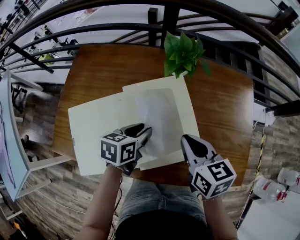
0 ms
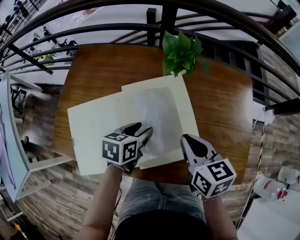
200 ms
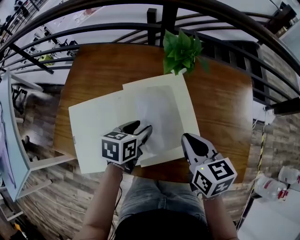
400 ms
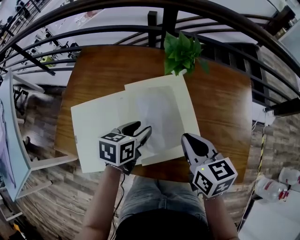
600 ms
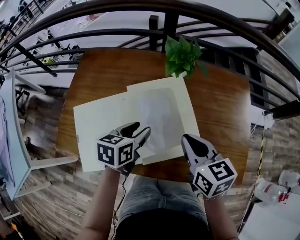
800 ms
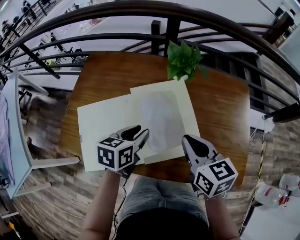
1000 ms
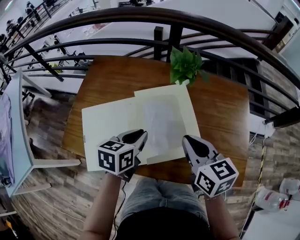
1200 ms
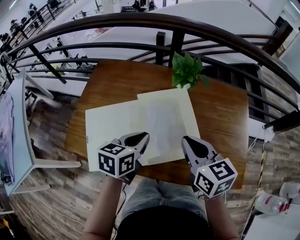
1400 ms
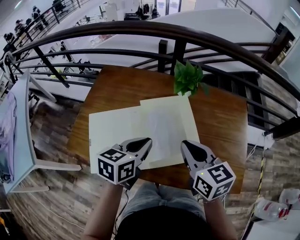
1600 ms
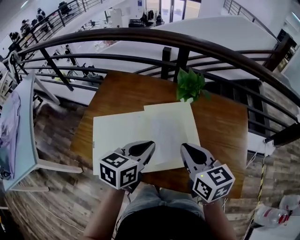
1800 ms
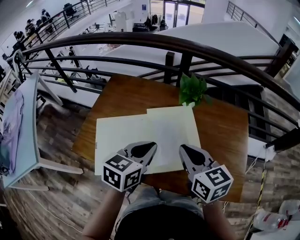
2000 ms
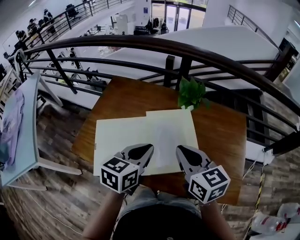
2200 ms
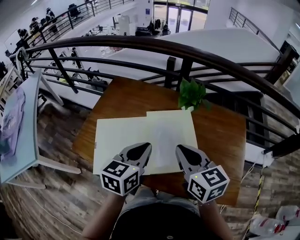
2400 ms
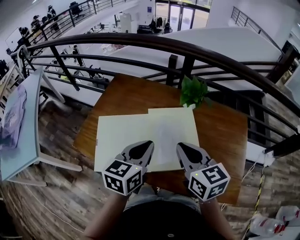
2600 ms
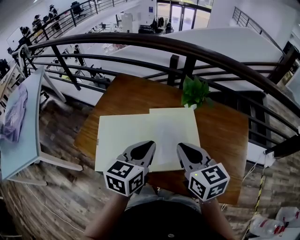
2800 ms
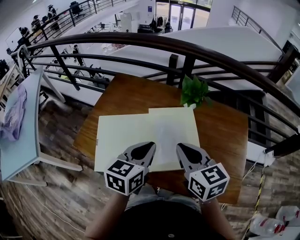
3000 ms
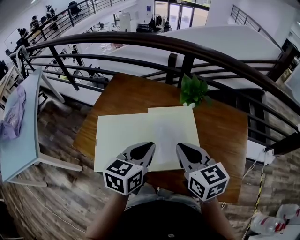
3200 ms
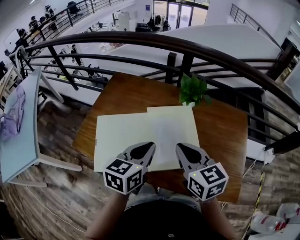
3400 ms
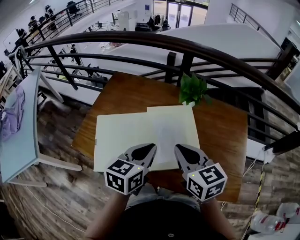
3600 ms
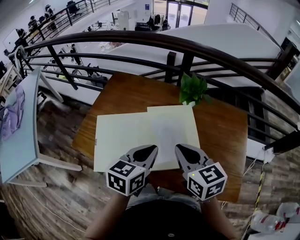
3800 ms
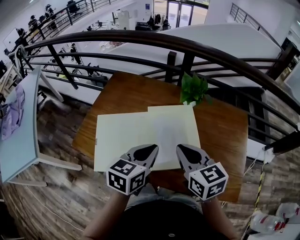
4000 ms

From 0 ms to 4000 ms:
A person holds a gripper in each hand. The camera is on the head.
From 0 ms to 1400 ms: Both grippers travel together upward, about 10 cm. The left gripper closes up.
From 1400 ms to 2600 ms: The left gripper moves upward, approximately 10 cm. The right gripper shifts by about 5 cm.
From 2600 ms to 4000 ms: There are only small adjustments of the grippers.

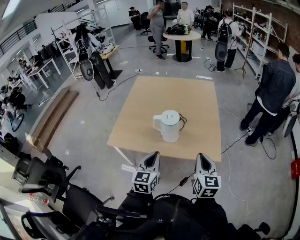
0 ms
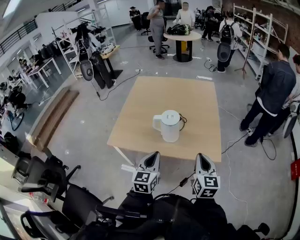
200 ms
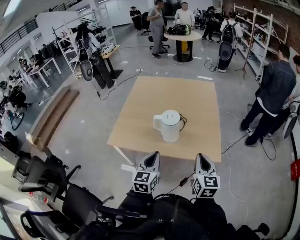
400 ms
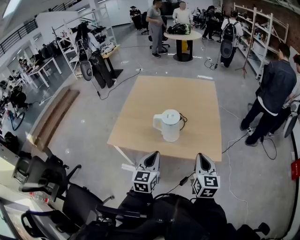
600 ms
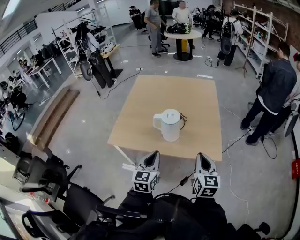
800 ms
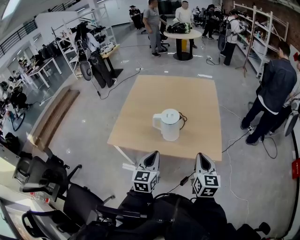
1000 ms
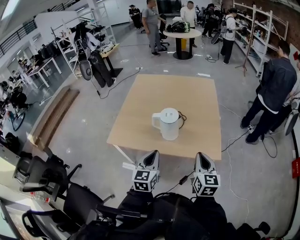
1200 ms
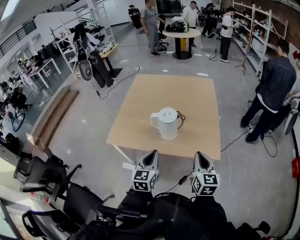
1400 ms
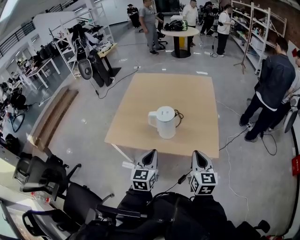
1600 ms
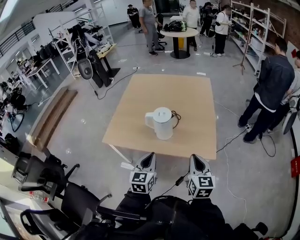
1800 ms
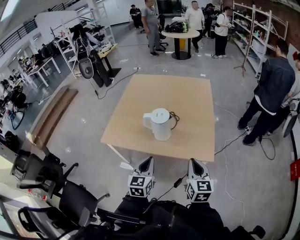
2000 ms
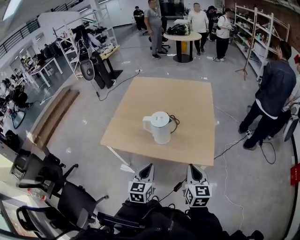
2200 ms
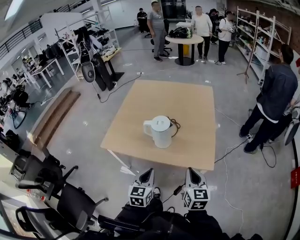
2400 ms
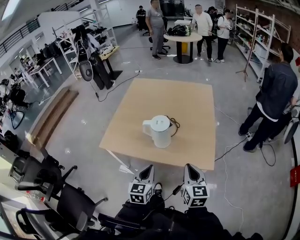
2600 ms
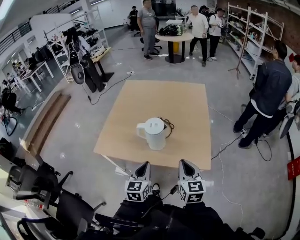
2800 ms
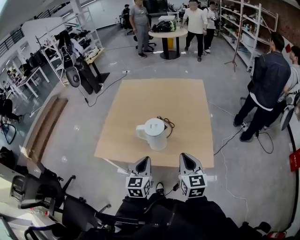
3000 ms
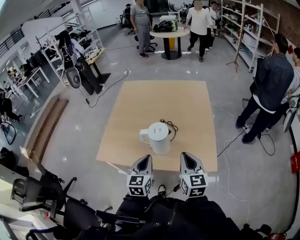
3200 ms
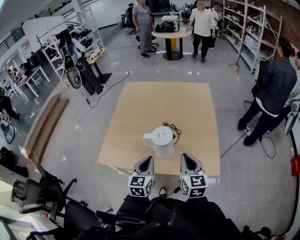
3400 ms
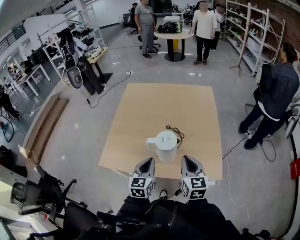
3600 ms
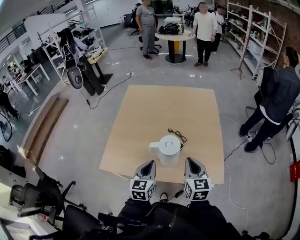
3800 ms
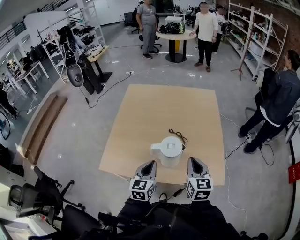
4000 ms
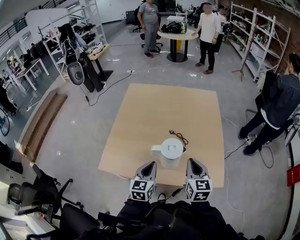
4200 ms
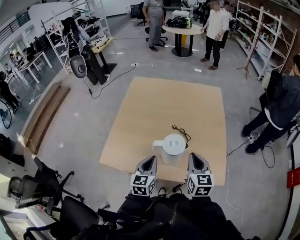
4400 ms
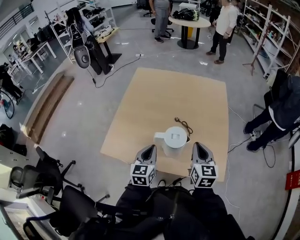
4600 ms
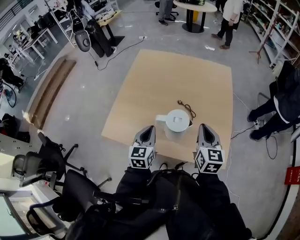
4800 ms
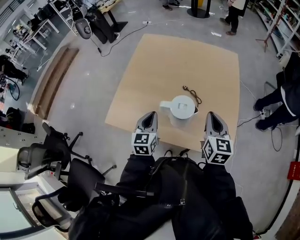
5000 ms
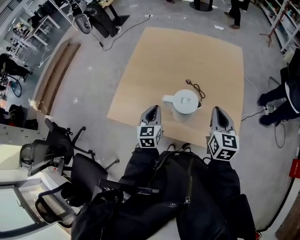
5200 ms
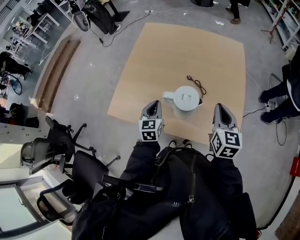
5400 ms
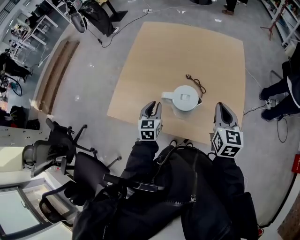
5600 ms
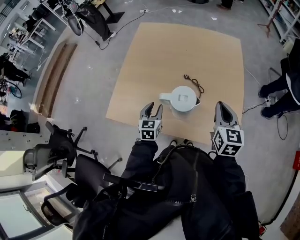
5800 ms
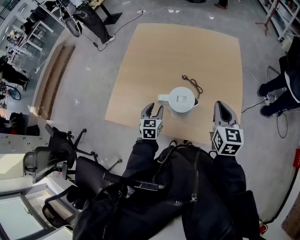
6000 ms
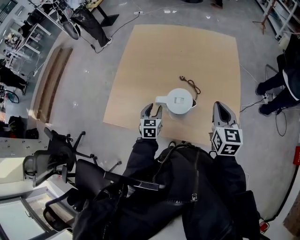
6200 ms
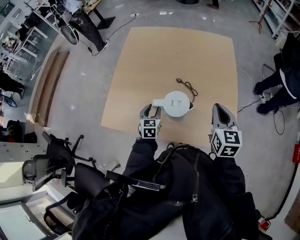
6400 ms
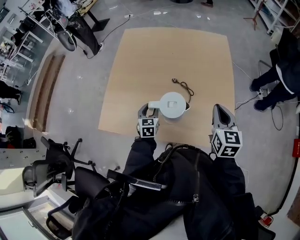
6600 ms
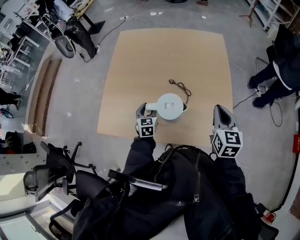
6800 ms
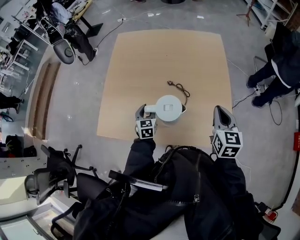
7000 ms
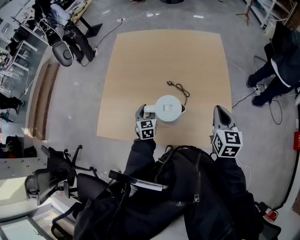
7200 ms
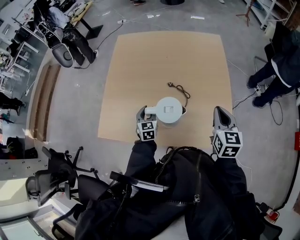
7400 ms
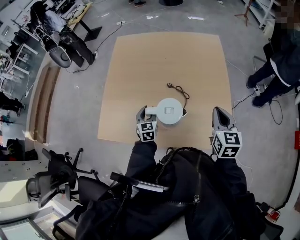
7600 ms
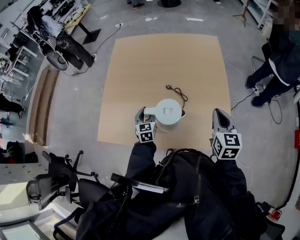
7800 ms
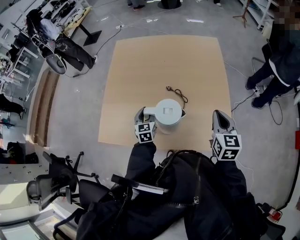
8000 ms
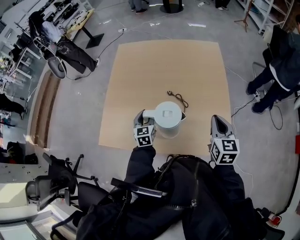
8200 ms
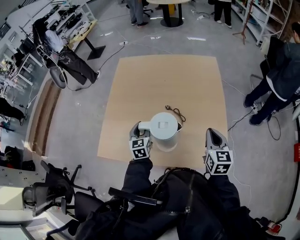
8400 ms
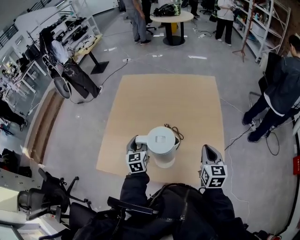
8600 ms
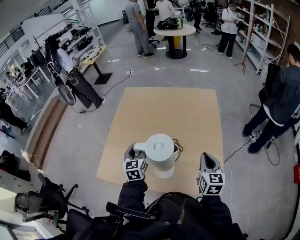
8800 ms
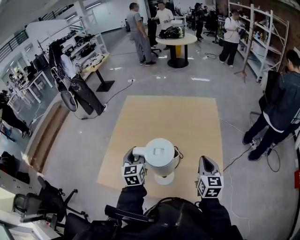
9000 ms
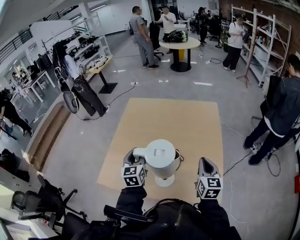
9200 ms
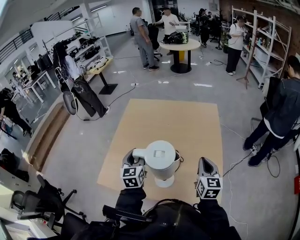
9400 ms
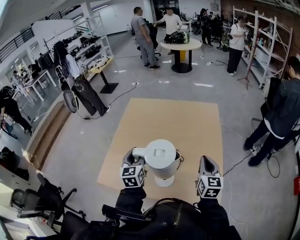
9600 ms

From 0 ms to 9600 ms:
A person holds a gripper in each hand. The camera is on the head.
From 0 ms to 1600 ms: The grippers move only a little.
From 1600 ms to 3200 ms: The grippers both shift forward by some 10 cm.
From 3200 ms to 4800 ms: The right gripper moves forward, some 15 cm, while the left gripper shifts some 15 cm forward and to the left.
From 4800 ms to 6400 ms: The right gripper moves to the right, about 5 cm; the left gripper moves downward and forward, about 20 cm, and opens up.
From 6400 ms to 8000 ms: The left gripper changes place by roughly 5 cm.
From 8000 ms to 9600 ms: The left gripper shifts about 20 cm upward.

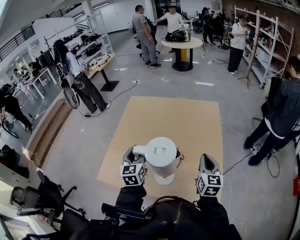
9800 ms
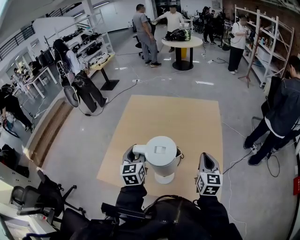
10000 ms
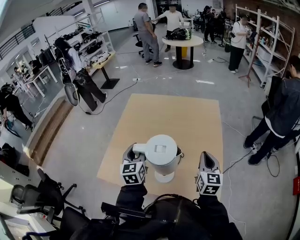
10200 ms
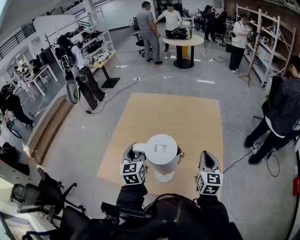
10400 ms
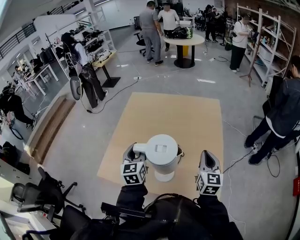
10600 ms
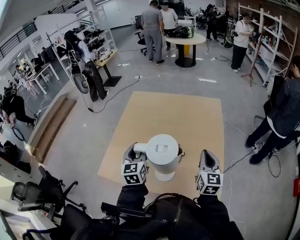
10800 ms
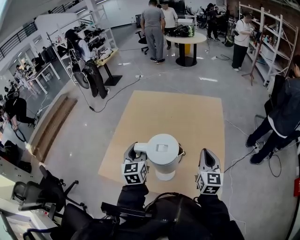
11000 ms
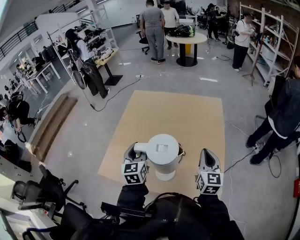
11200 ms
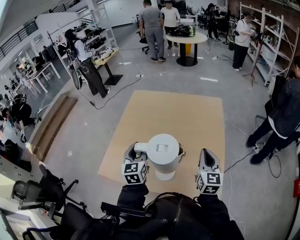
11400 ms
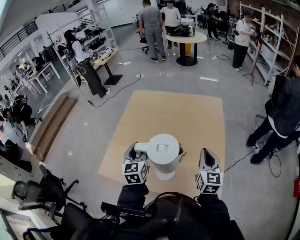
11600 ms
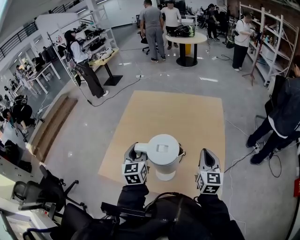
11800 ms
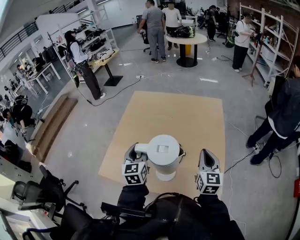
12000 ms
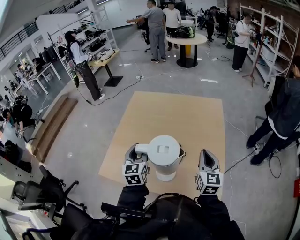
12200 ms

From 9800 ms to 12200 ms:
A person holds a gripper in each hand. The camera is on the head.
From 9800 ms to 11000 ms: The grippers make only small movements.
From 11000 ms to 12200 ms: Neither gripper changes place.

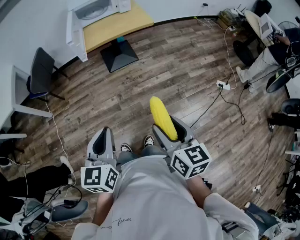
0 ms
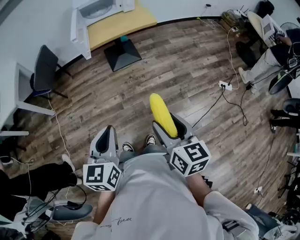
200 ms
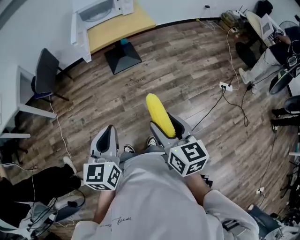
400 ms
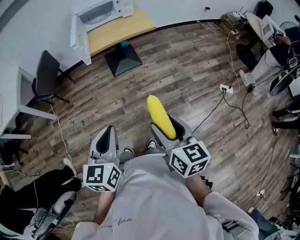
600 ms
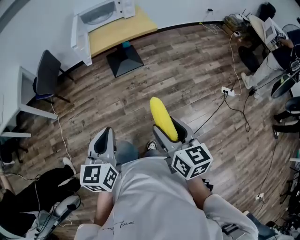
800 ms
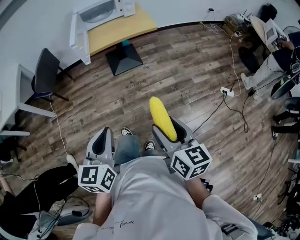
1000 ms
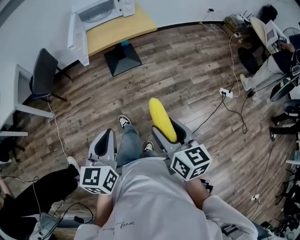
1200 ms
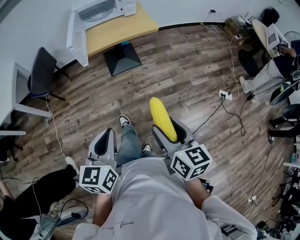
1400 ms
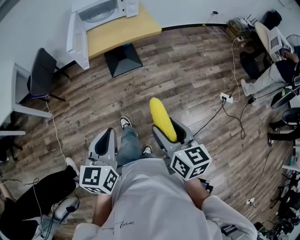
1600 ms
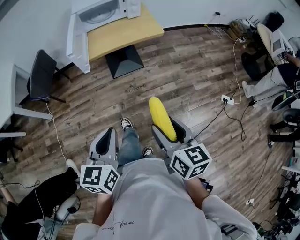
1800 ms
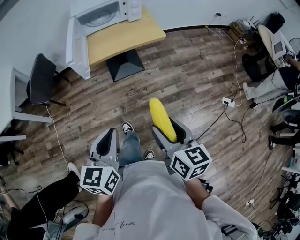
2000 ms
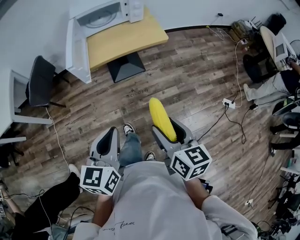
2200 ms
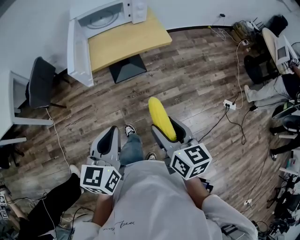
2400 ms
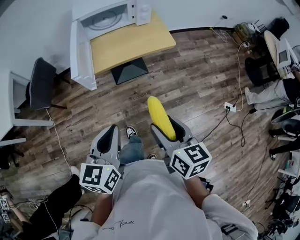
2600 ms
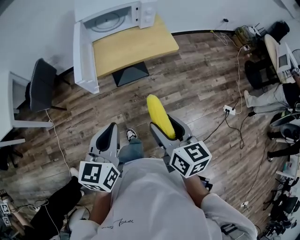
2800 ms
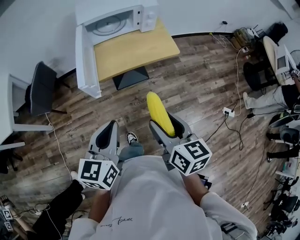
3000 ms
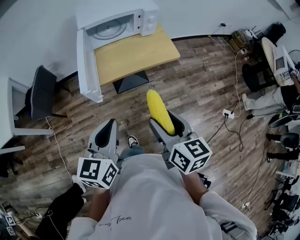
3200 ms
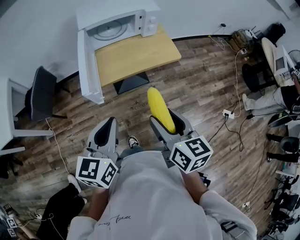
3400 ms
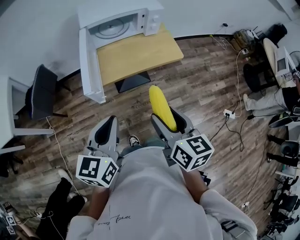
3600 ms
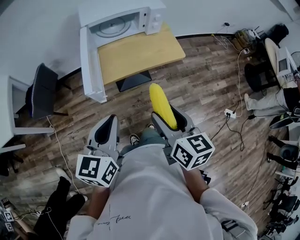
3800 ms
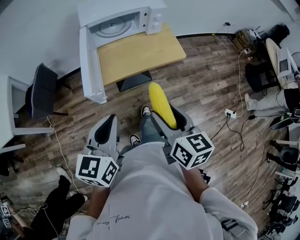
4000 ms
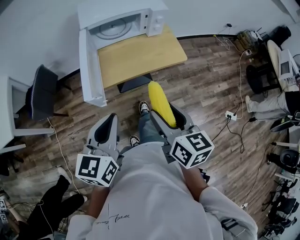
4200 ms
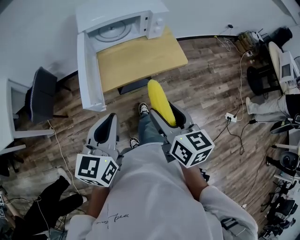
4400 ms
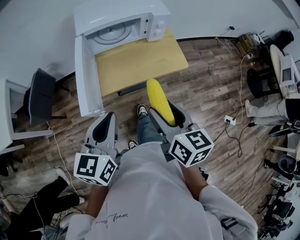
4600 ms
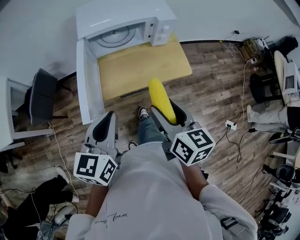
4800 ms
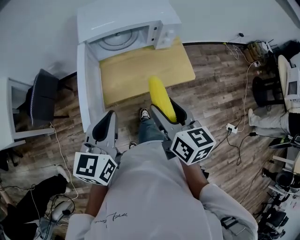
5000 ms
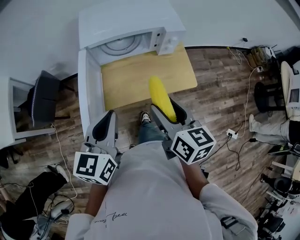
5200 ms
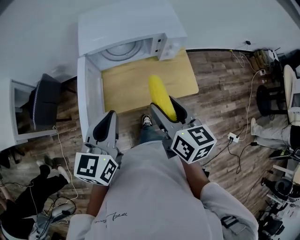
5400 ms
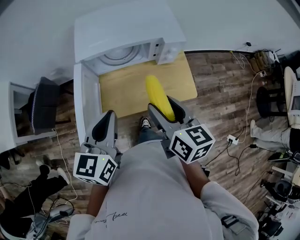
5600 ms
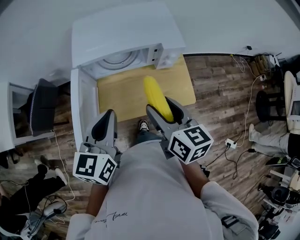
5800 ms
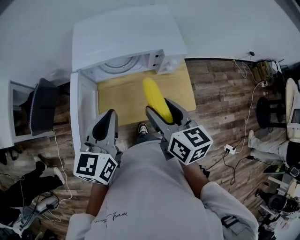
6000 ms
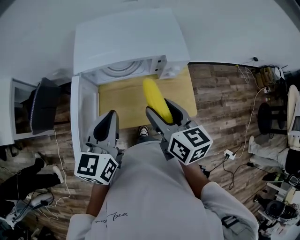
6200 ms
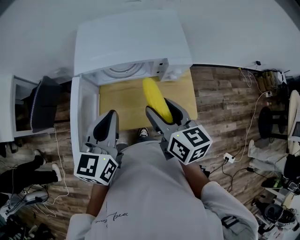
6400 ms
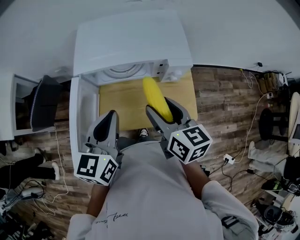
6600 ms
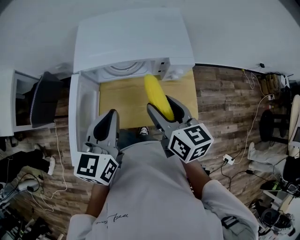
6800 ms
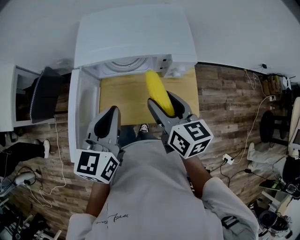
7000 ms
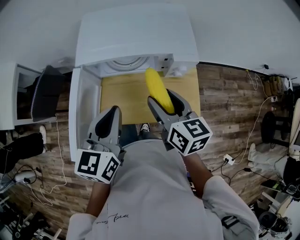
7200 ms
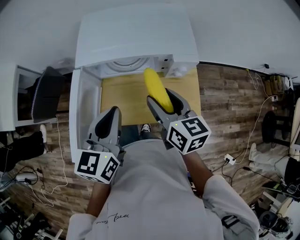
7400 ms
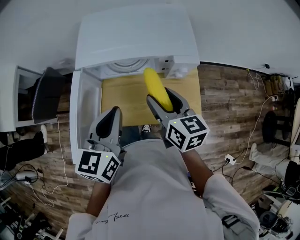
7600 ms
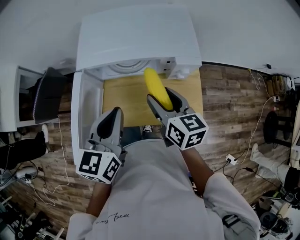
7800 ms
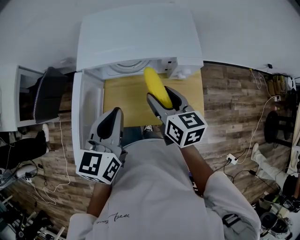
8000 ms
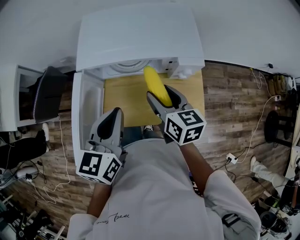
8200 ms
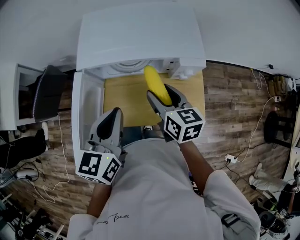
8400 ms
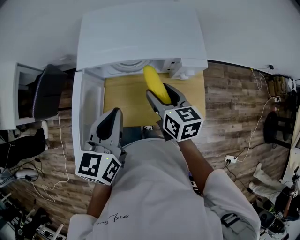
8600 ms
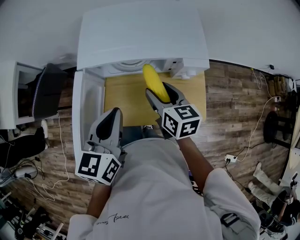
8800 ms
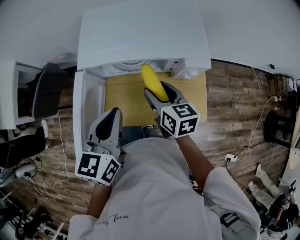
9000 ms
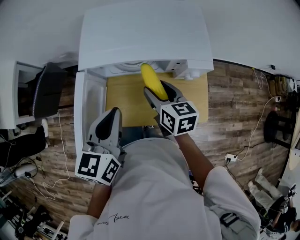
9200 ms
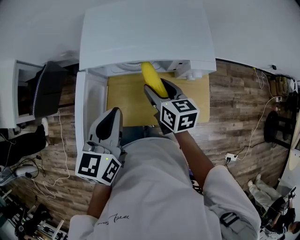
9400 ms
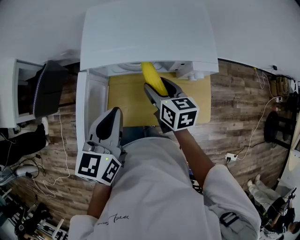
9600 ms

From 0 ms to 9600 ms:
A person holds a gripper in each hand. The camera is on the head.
From 0 ms to 1600 ms: The grippers both shift forward by approximately 10 cm.
From 1600 ms to 3200 ms: Both grippers move forward, approximately 30 cm.
From 3200 ms to 4800 ms: The grippers both shift forward by approximately 20 cm.
From 4800 ms to 6400 ms: The grippers both shift forward by about 25 cm.
From 6400 ms to 8000 ms: The right gripper heads downward and forward, covering roughly 10 cm.
From 8000 ms to 9600 ms: The right gripper is displaced forward and downward by some 10 cm, while the left gripper shifts by about 5 cm.
